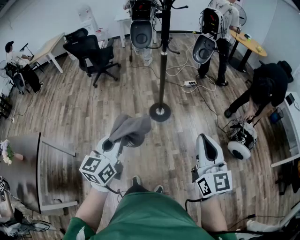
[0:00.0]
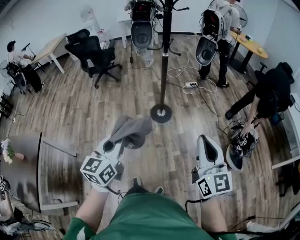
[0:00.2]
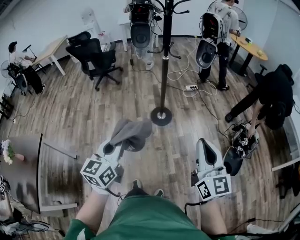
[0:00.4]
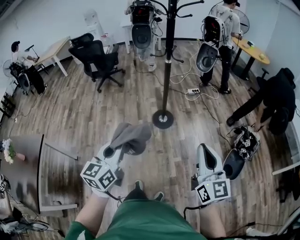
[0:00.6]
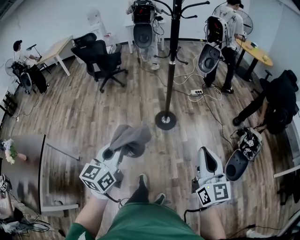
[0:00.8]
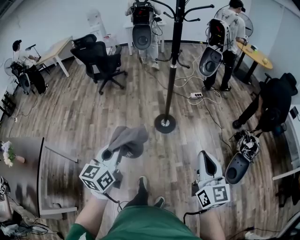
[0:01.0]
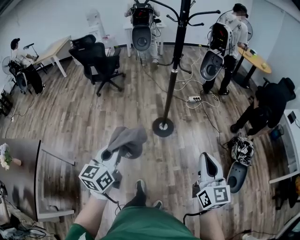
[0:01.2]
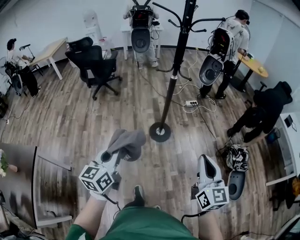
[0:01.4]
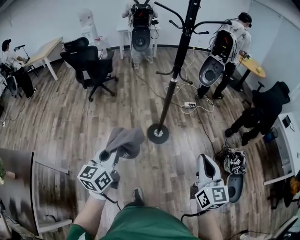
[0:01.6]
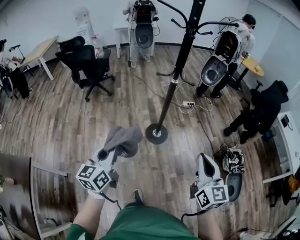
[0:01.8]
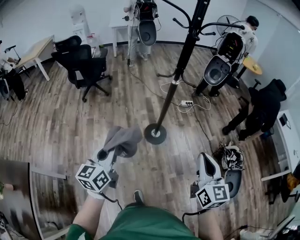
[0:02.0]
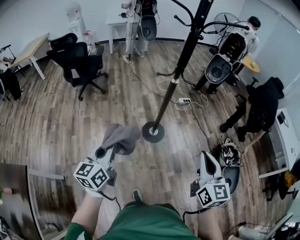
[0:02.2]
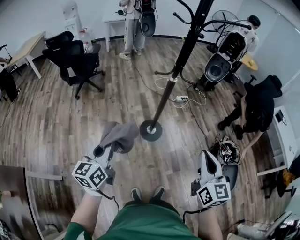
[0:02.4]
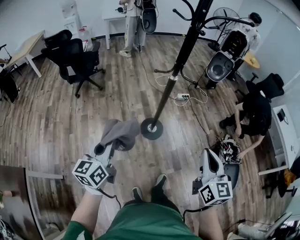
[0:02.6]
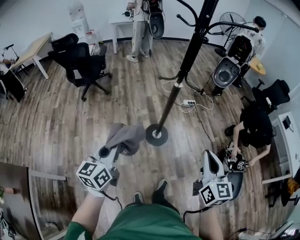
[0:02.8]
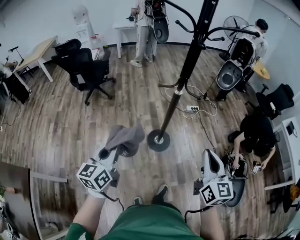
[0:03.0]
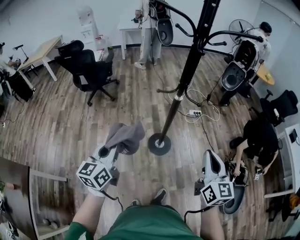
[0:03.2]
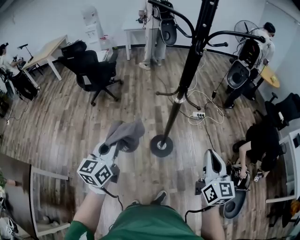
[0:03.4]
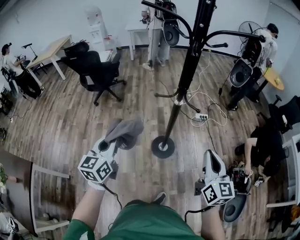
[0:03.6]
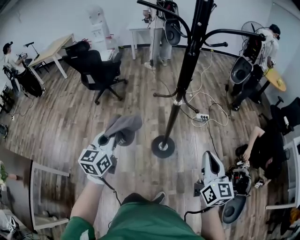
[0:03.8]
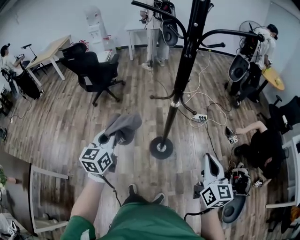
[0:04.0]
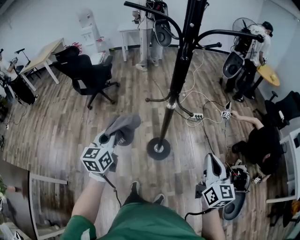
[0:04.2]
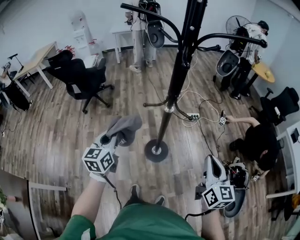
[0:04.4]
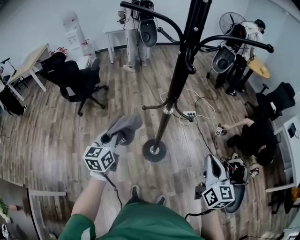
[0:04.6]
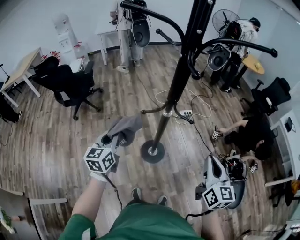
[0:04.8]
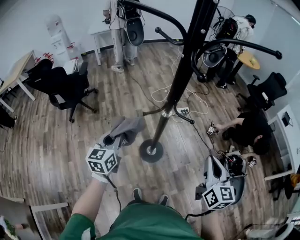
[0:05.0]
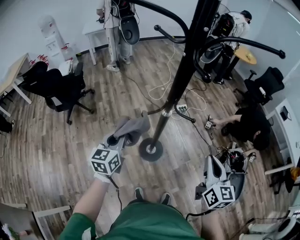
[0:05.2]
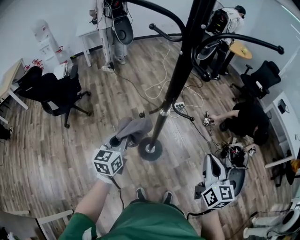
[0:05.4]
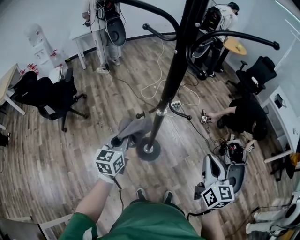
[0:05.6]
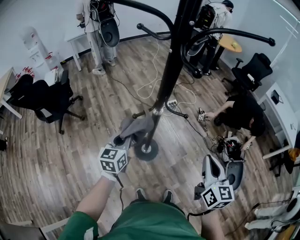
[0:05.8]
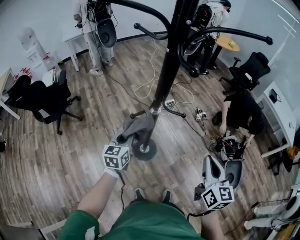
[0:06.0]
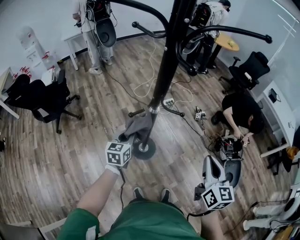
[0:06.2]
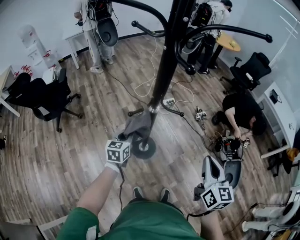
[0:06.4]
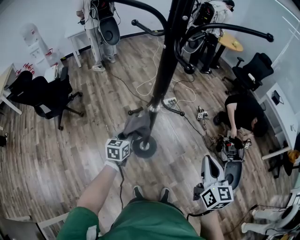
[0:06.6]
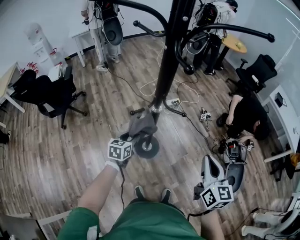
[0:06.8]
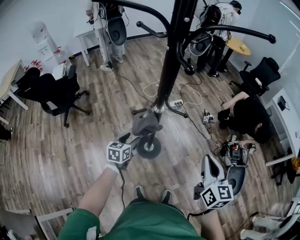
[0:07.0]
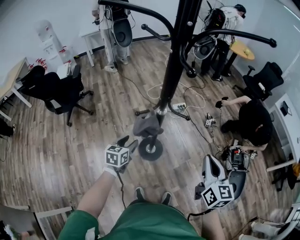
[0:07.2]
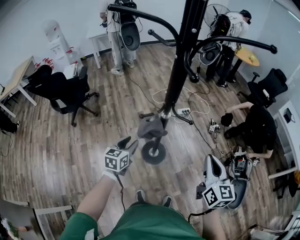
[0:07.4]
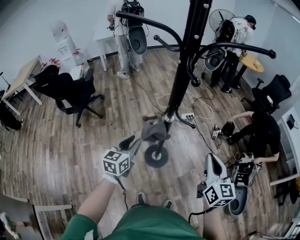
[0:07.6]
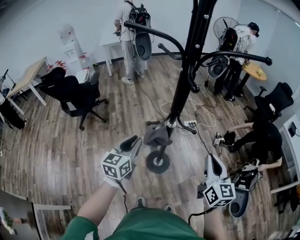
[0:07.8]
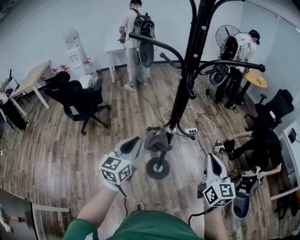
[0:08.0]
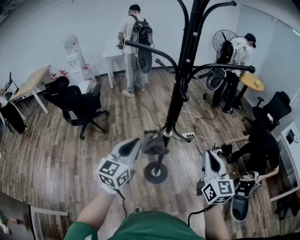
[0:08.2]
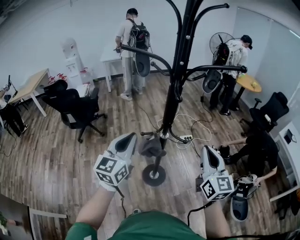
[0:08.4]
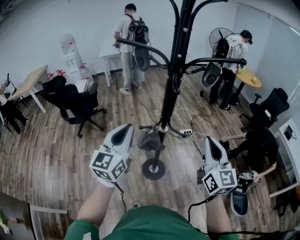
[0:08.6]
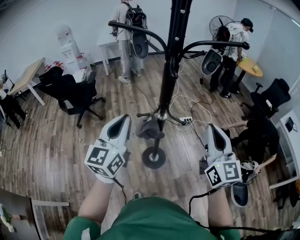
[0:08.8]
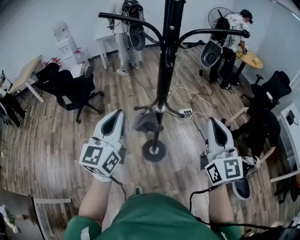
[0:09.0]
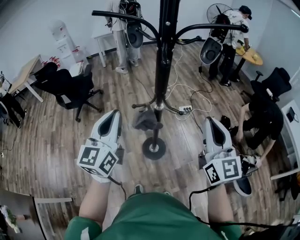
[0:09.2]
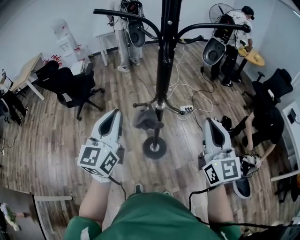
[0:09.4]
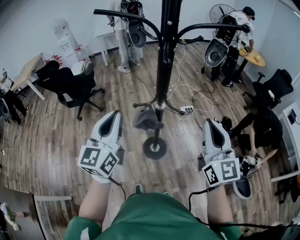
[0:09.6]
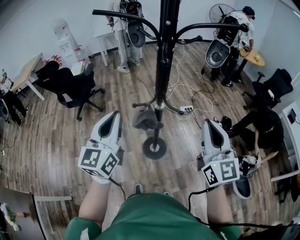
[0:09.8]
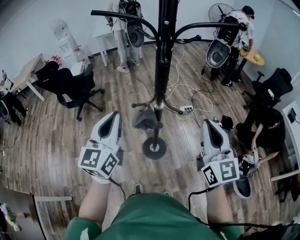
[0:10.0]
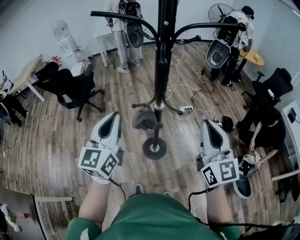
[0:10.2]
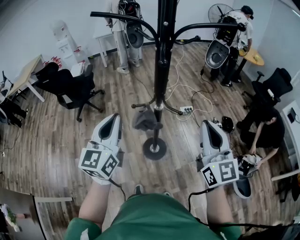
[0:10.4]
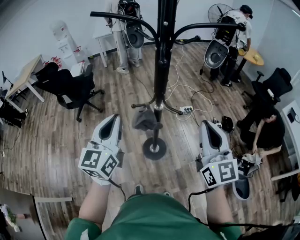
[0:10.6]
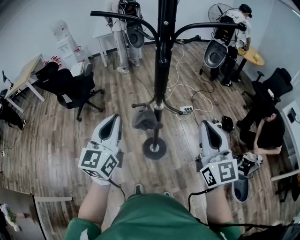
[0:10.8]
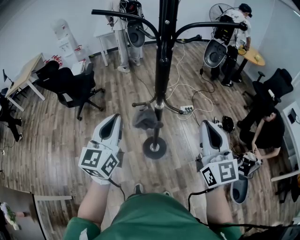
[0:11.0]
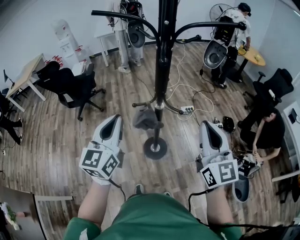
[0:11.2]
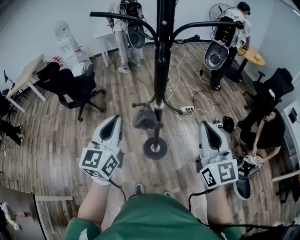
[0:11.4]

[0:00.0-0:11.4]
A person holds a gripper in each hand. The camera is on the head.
0:00.0 to 0:01.4: Both grippers move forward and to the left, about 15 cm.
0:01.4 to 0:02.8: Both grippers move forward, some 20 cm.
0:02.8 to 0:04.2: The right gripper is displaced forward and to the right by some 20 cm. Meanwhile the left gripper shifts about 20 cm forward.
0:04.2 to 0:05.6: The right gripper travels to the left by roughly 10 cm, and turns by some 20 degrees. Meanwhile the left gripper is displaced forward and downward by roughly 15 cm, and turns by about 30 degrees.
0:05.6 to 0:07.2: The left gripper heads downward, covering approximately 10 cm, and opens up.
0:07.2 to 0:08.6: The left gripper shifts roughly 35 cm upward, tilts its fingers approximately 40 degrees upward, and closes up; the right gripper moves upward, some 15 cm, and rotates some 20 degrees.
0:08.6 to 0:11.4: The grippers make only small movements.

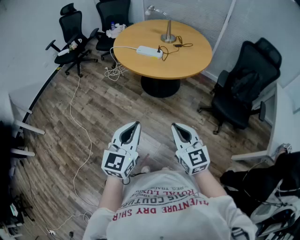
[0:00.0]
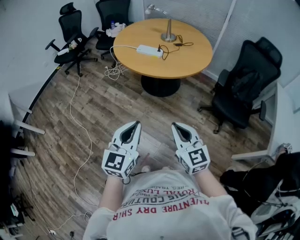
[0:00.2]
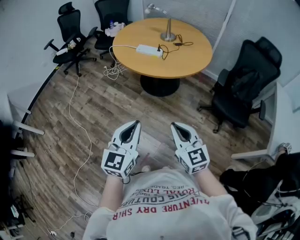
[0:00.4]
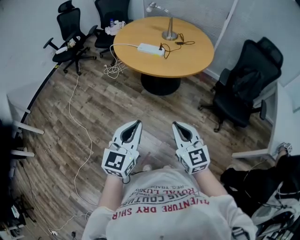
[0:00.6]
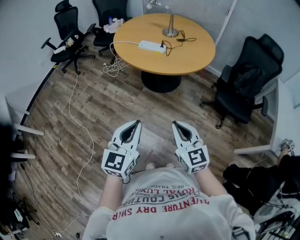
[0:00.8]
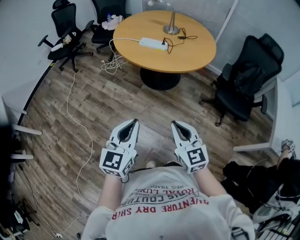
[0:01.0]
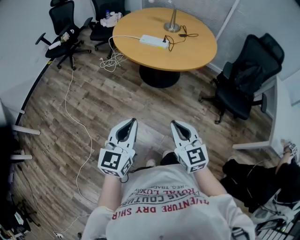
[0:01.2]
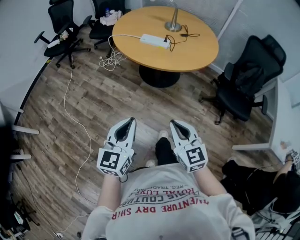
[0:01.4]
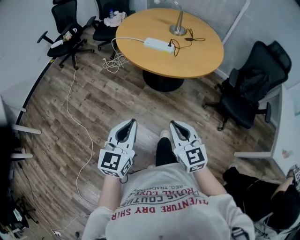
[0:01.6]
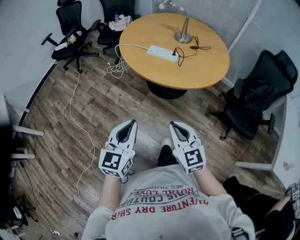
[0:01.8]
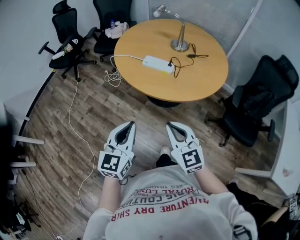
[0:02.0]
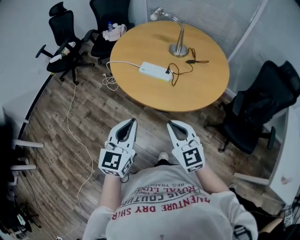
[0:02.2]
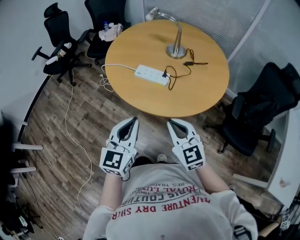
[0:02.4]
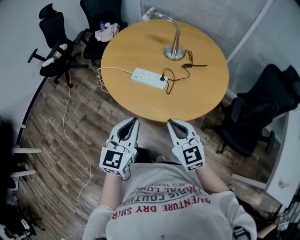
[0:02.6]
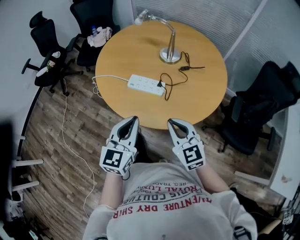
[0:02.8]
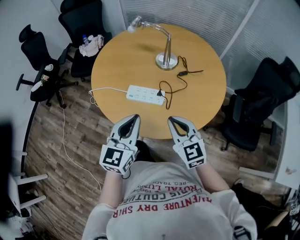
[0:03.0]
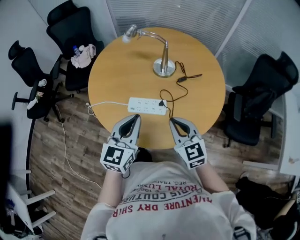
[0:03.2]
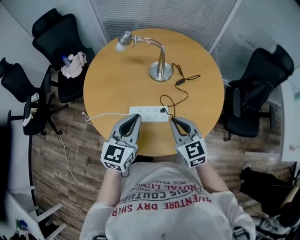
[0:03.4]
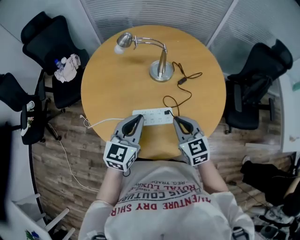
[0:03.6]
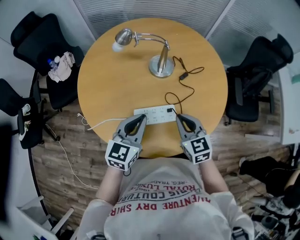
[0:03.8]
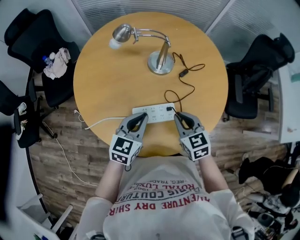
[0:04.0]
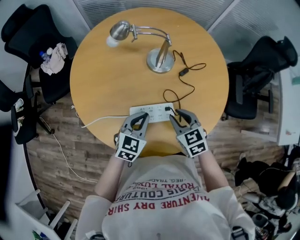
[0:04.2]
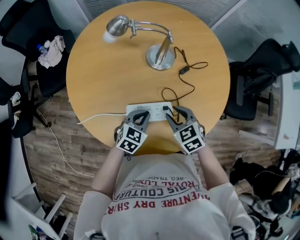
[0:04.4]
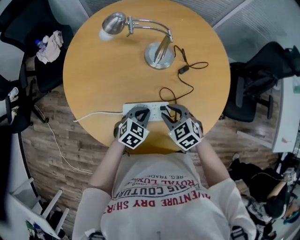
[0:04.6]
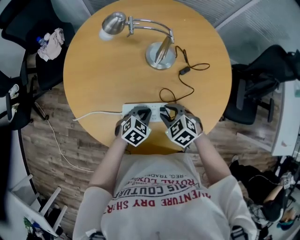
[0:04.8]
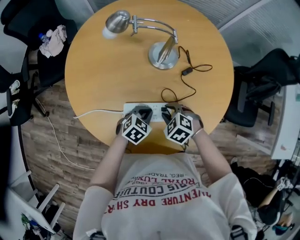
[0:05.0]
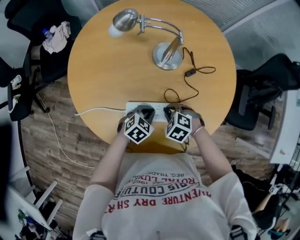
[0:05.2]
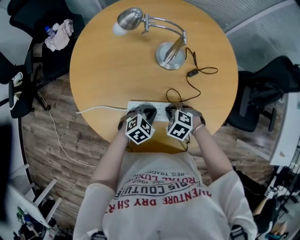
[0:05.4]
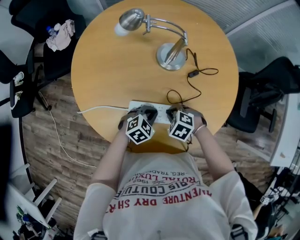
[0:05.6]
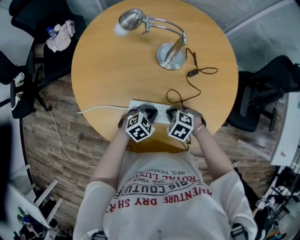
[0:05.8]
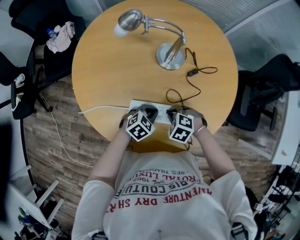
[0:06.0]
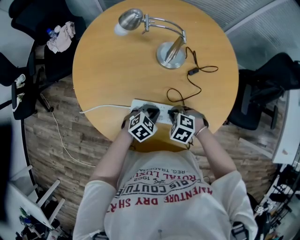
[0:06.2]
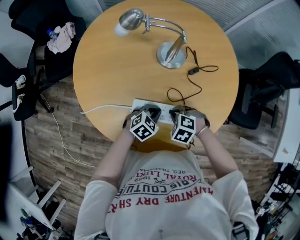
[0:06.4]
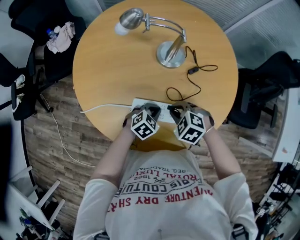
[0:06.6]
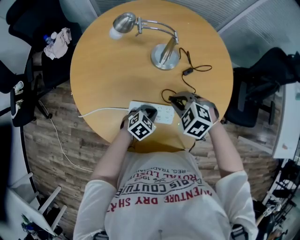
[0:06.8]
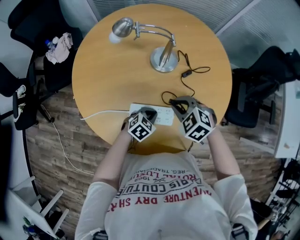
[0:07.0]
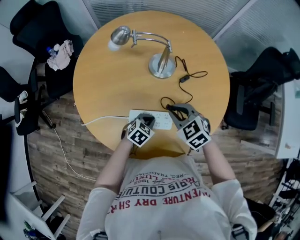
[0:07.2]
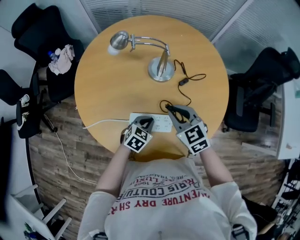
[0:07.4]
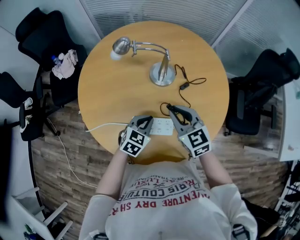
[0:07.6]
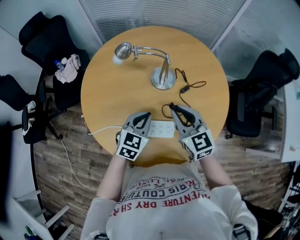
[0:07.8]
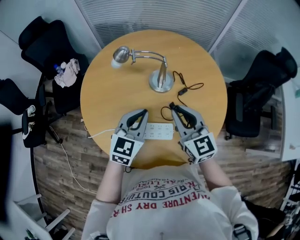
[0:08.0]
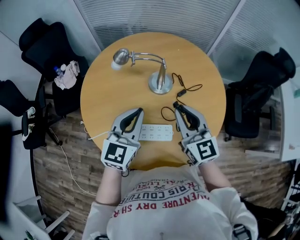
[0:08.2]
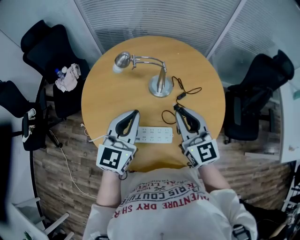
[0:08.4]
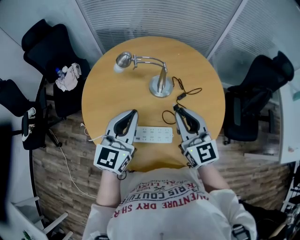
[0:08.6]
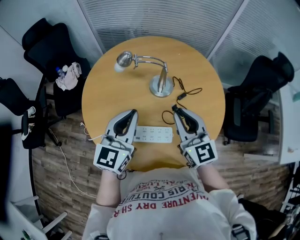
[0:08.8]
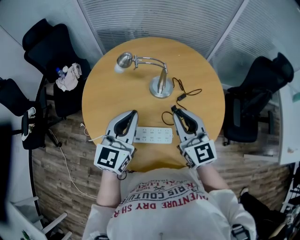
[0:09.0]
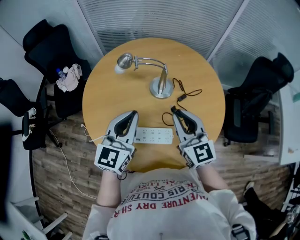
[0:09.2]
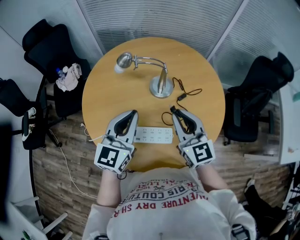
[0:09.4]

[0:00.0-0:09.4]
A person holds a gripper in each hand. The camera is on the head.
0:00.0 to 0:01.6: The right gripper is displaced to the left, forward and downward by approximately 15 cm, while the left gripper goes some 15 cm to the left and forward.
0:01.6 to 0:03.2: Both grippers are carried forward, some 50 cm.
0:03.2 to 0:04.8: The two grippers go roughly 25 cm downward and forward. The right gripper tilts its fingers roughly 40 degrees downward, and opens, while the left gripper tips its fingers downward by about 40 degrees.
0:04.8 to 0:06.2: The right gripper changes its angle by some 20 degrees, and closes its fingers.
0:06.2 to 0:07.8: Both grippers travel together upward, approximately 20 cm. The left gripper changes its angle by approximately 30 degrees; the right gripper tips its fingers upward by roughly 60 degrees.
0:07.8 to 0:09.4: The left gripper travels upward by about 15 cm, and rotates approximately 30 degrees. Meanwhile the right gripper travels upward by roughly 5 cm.

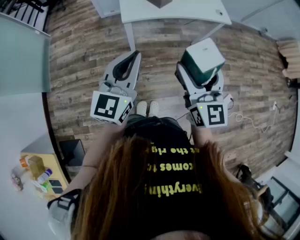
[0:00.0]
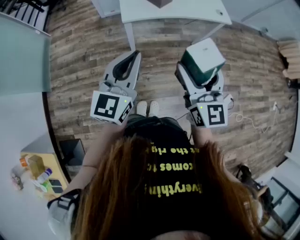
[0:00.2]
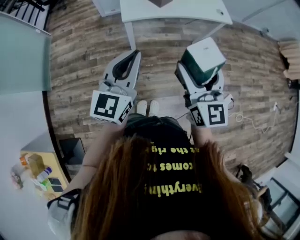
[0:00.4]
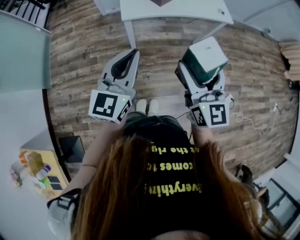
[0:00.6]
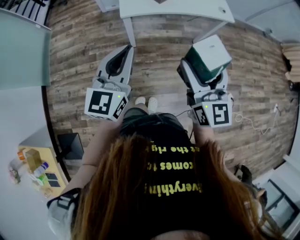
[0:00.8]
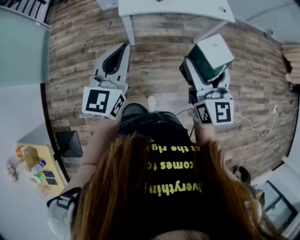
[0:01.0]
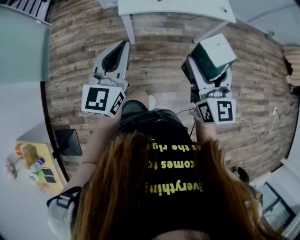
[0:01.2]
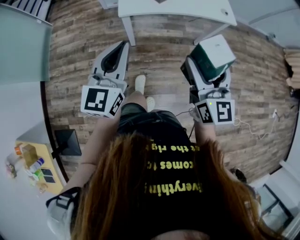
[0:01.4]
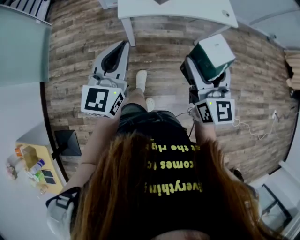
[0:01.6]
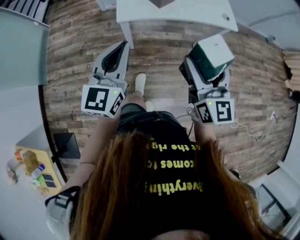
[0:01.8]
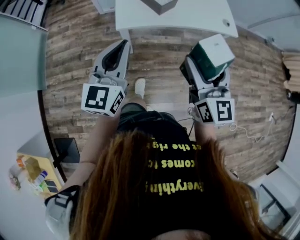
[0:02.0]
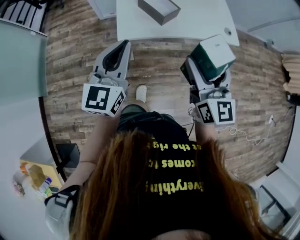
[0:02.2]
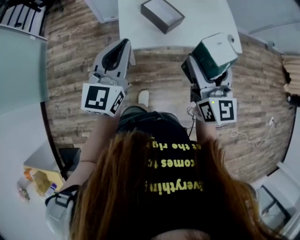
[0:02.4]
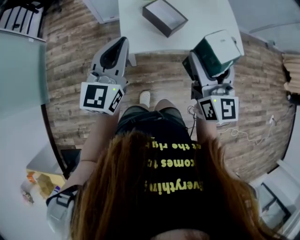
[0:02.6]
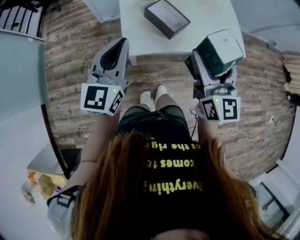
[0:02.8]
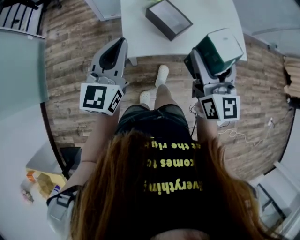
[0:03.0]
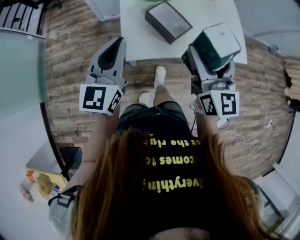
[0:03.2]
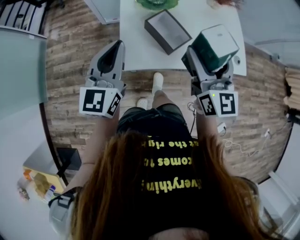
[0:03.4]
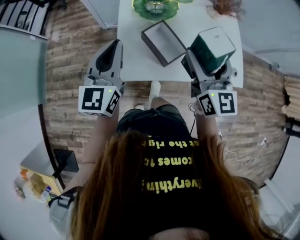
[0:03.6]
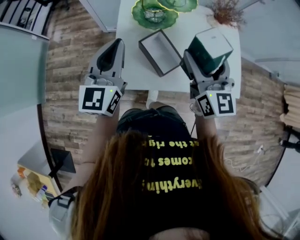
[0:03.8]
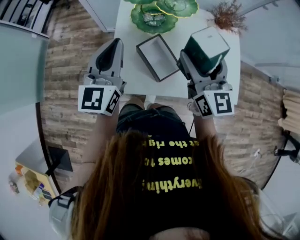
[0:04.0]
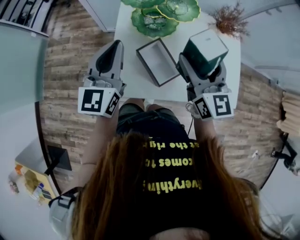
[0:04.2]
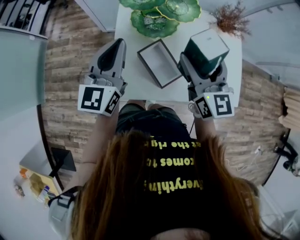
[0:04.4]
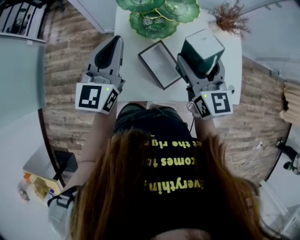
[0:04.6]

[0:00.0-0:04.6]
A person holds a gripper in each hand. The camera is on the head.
0:00.0 to 0:01.6: The right gripper is displaced forward and to the right by roughly 10 cm. Meanwhile the left gripper heads forward, covering about 5 cm.
0:01.6 to 0:03.0: The two grippers go about 30 cm forward.
0:03.0 to 0:04.6: The two grippers go some 25 cm forward.
